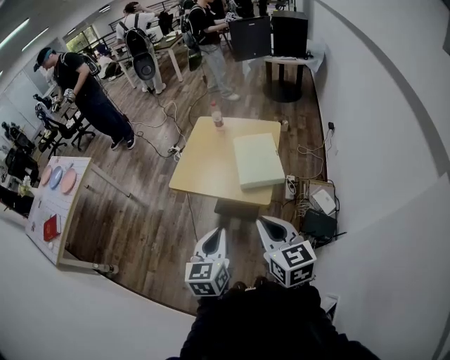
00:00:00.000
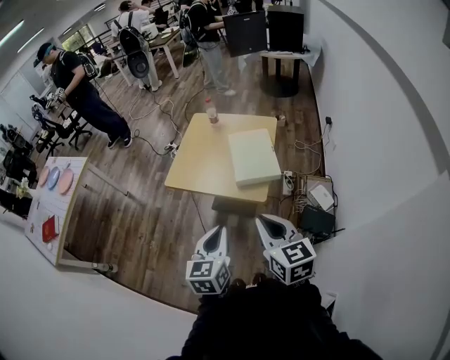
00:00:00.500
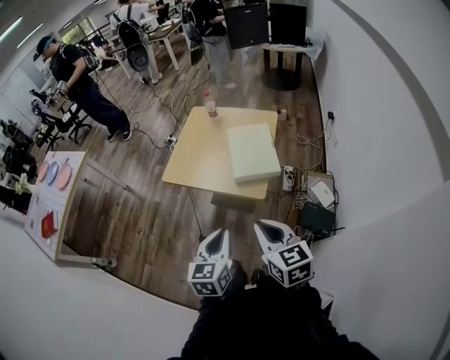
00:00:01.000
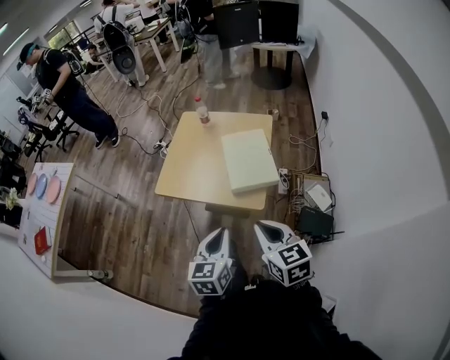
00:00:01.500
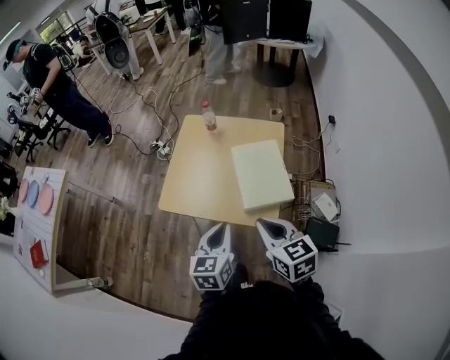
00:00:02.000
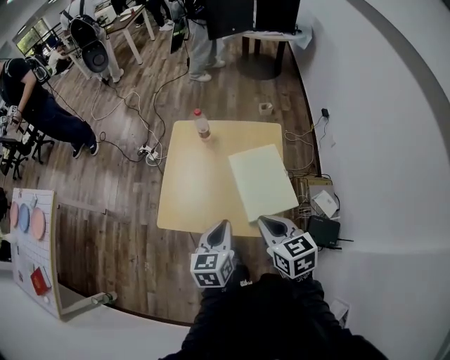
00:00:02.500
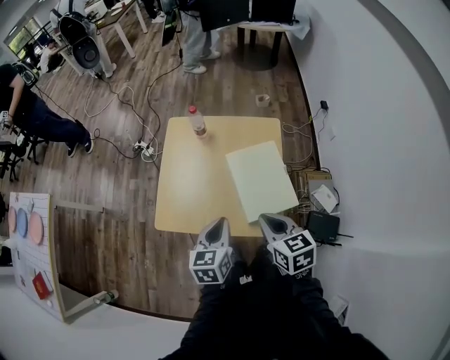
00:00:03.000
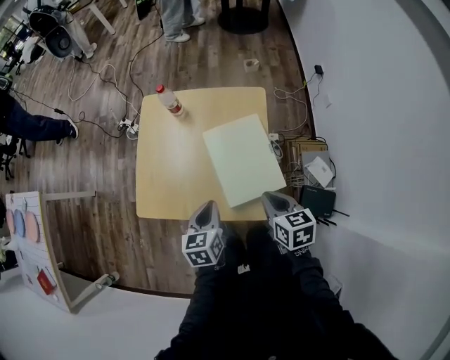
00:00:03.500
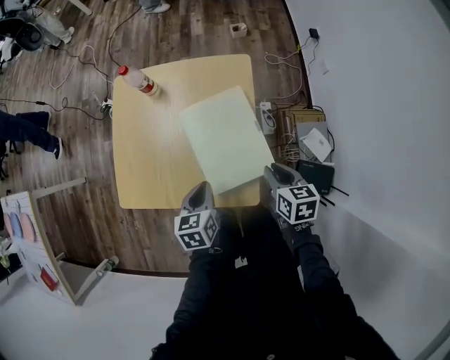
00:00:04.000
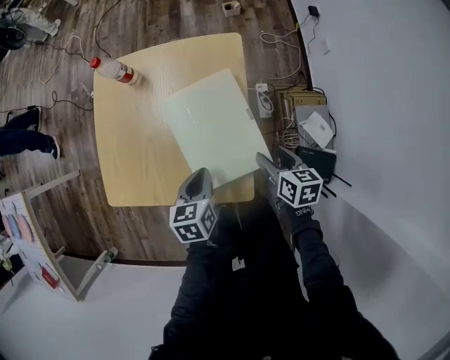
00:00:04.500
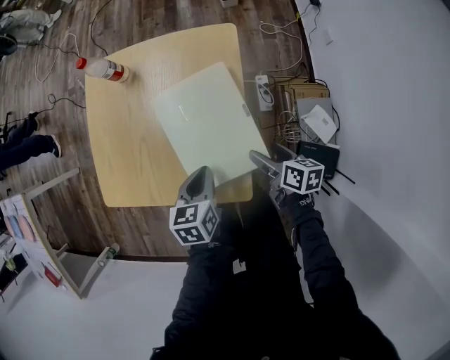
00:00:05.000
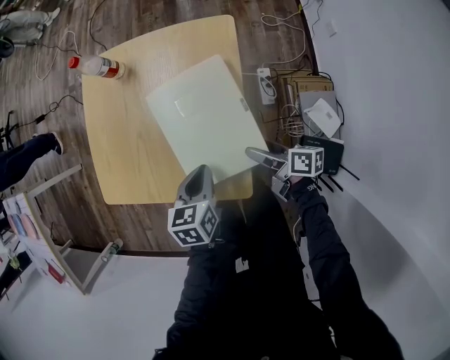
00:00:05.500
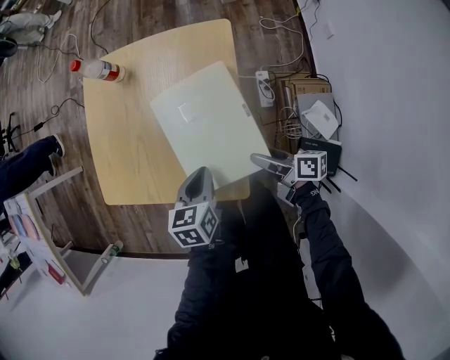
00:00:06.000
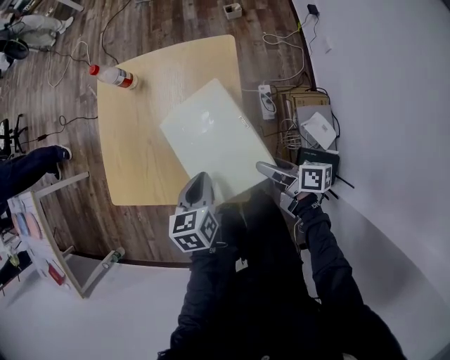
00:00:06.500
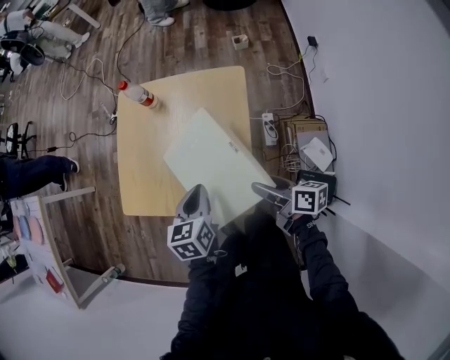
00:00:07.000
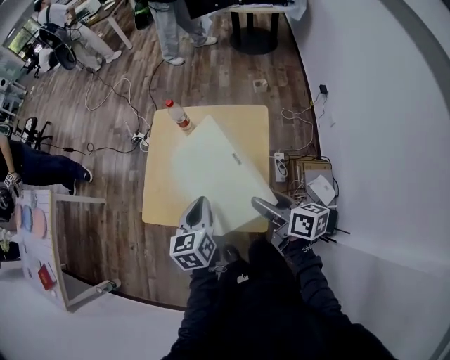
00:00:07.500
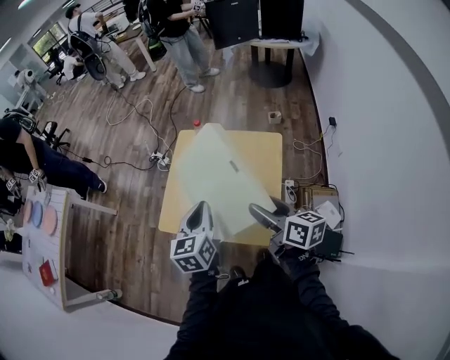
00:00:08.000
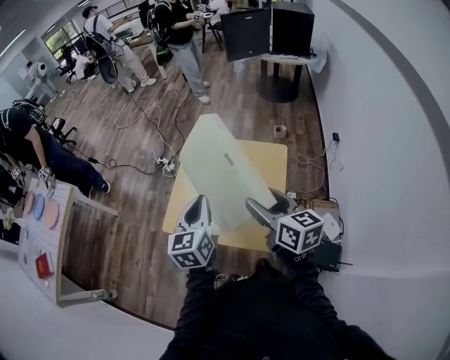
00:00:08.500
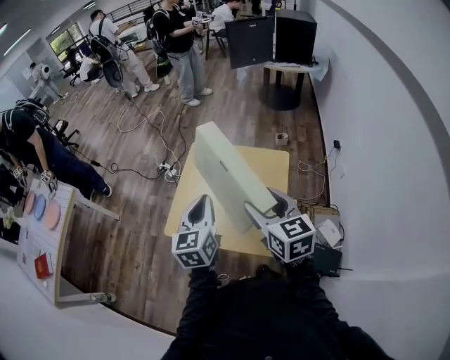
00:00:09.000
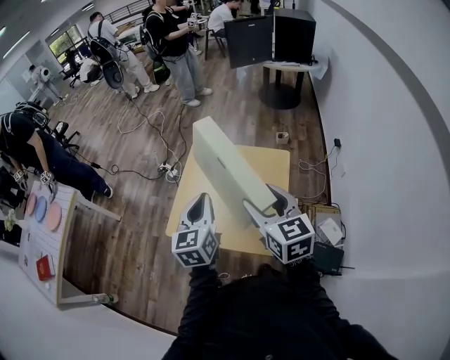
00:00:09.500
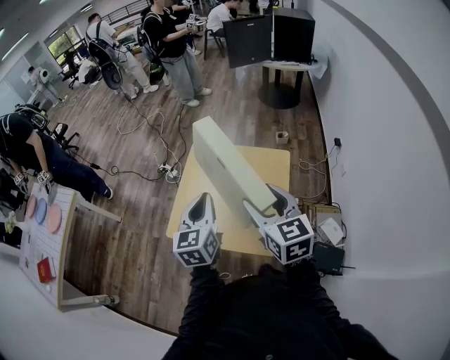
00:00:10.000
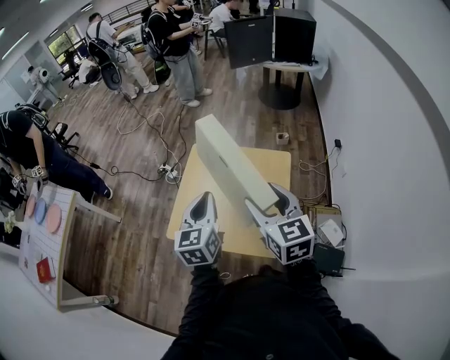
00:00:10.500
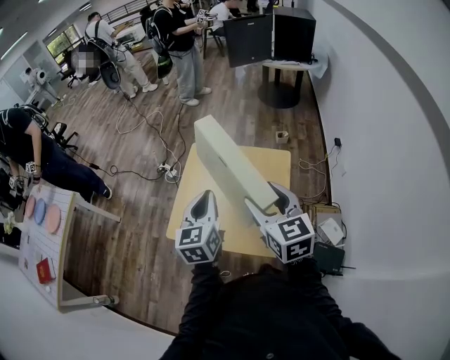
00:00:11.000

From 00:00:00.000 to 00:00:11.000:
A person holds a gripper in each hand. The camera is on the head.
From 00:00:00.000 to 00:00:02.000: The grippers both shift forward by about 20 cm.
From 00:00:02.000 to 00:00:03.500: The right gripper moves downward, forward and to the right, roughly 20 cm, and swivels roughly 20 degrees; the left gripper moves forward and downward, approximately 20 cm.
From 00:00:03.500 to 00:00:05.500: The two grippers go about 20 cm downward and to the right. The right gripper twists some 40 degrees clockwise, seen from behind, and opens up.
From 00:00:05.500 to 00:00:07.500: The left gripper goes approximately 25 cm upward and to the left, and rotates some 20 degrees. The right gripper moves upward, some 30 cm, and changes its angle by approximately 20 degrees.
From 00:00:07.500 to 00:00:09.000: The two grippers go some 20 cm upward and to the left. The right gripper rotates around the line of its fingers by about 40 degrees, counterclockwise from behind.
From 00:00:09.000 to 00:00:11.000: There are only small adjustments of the grippers.

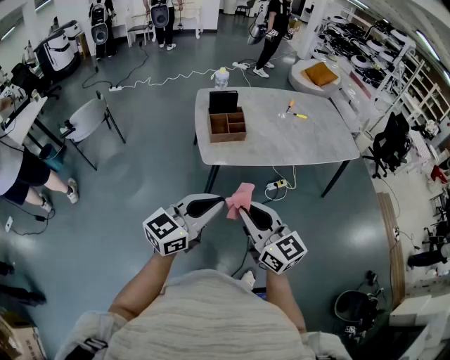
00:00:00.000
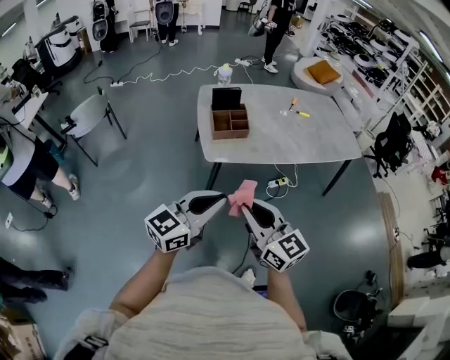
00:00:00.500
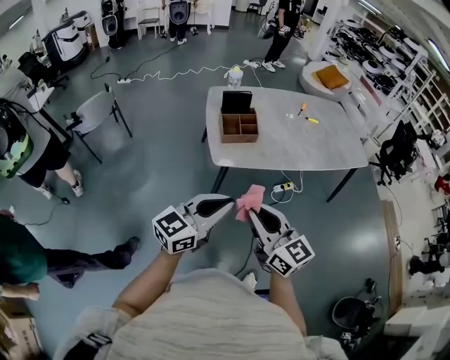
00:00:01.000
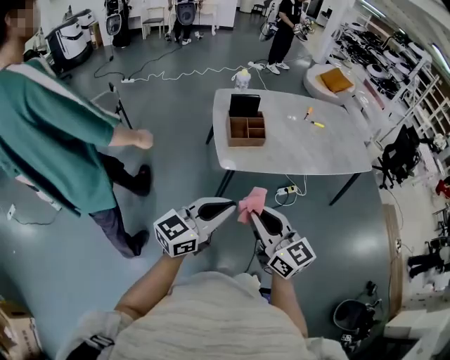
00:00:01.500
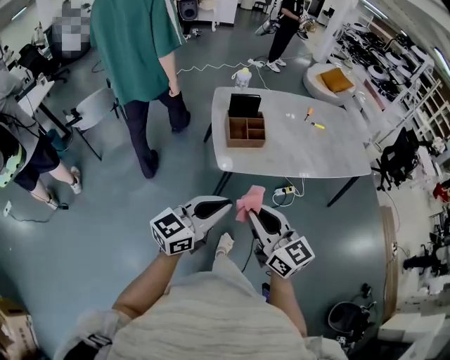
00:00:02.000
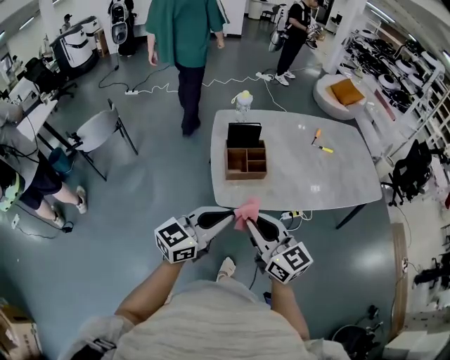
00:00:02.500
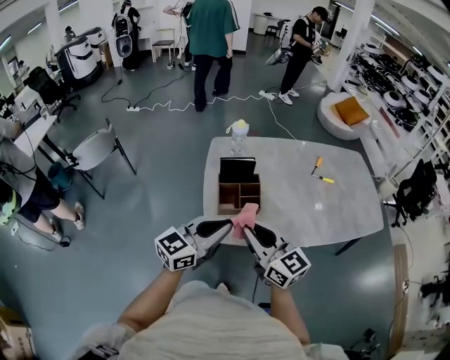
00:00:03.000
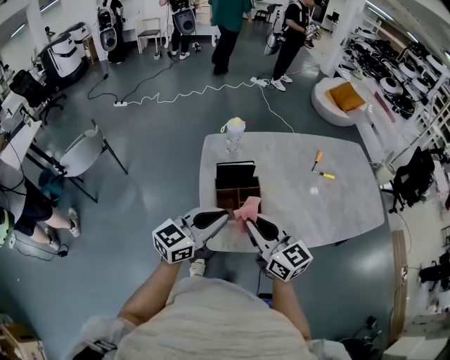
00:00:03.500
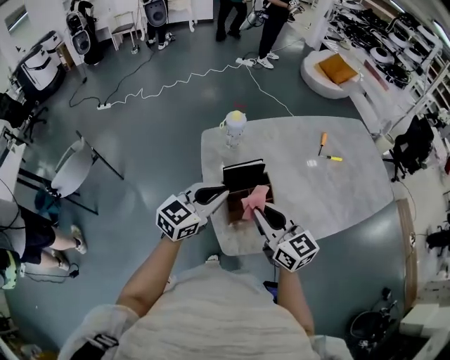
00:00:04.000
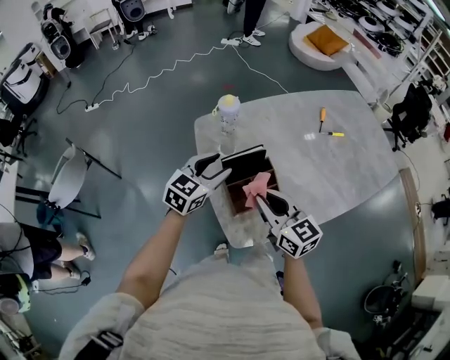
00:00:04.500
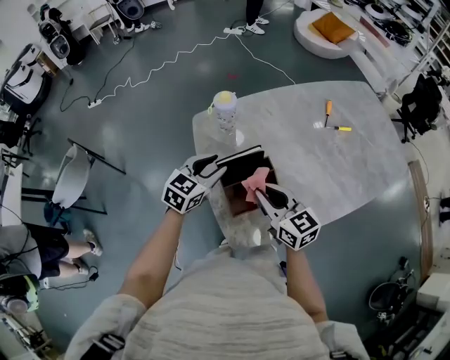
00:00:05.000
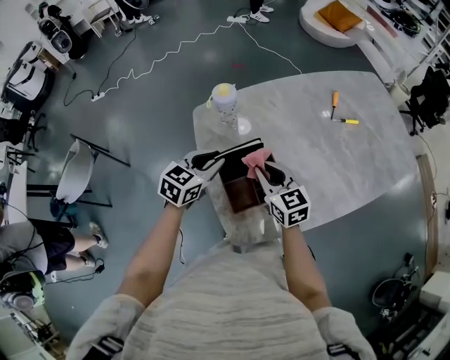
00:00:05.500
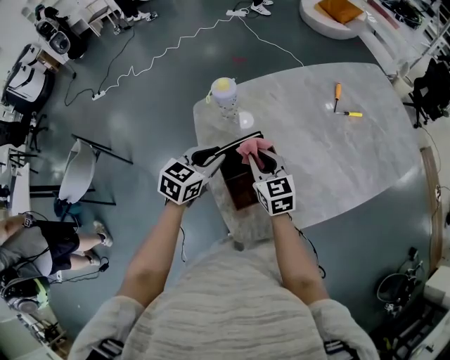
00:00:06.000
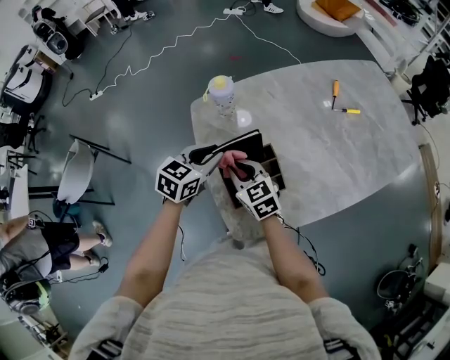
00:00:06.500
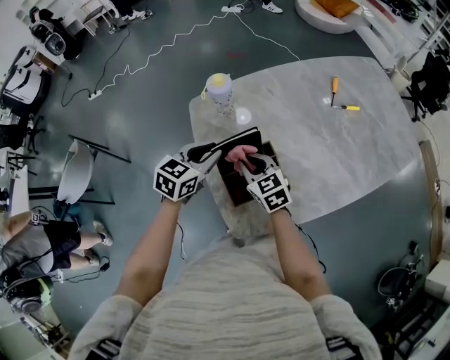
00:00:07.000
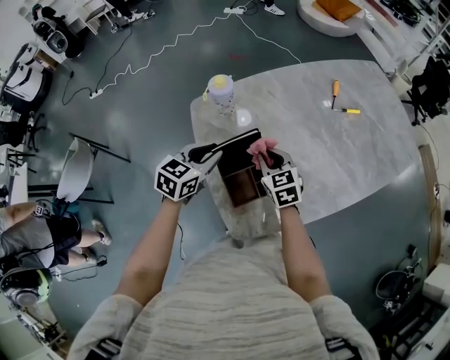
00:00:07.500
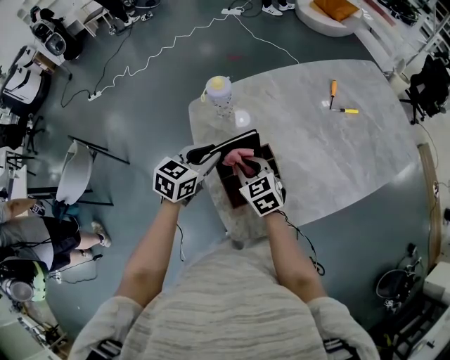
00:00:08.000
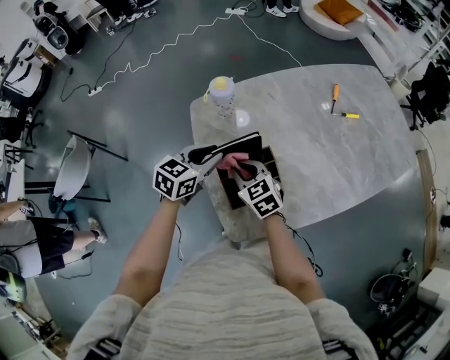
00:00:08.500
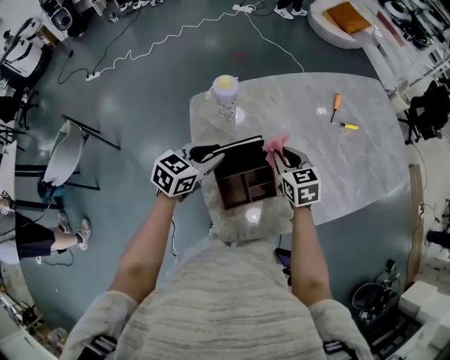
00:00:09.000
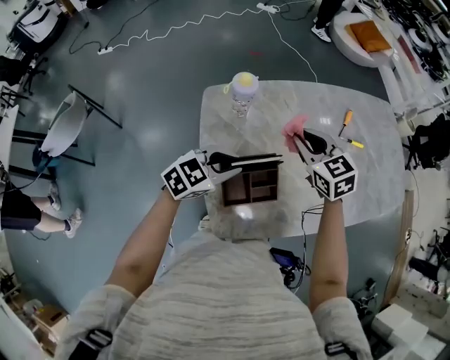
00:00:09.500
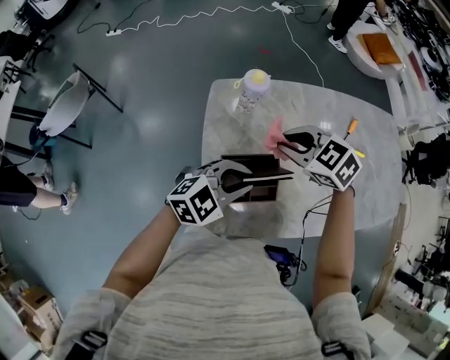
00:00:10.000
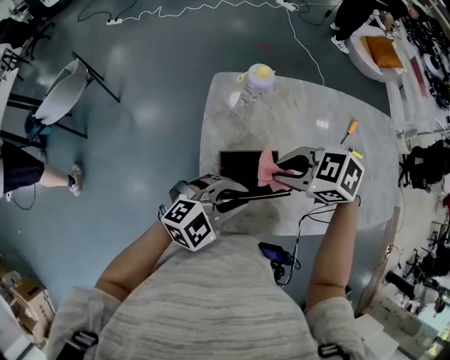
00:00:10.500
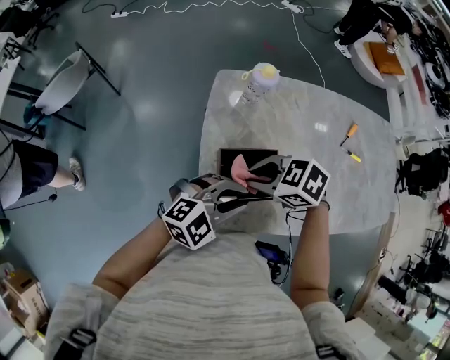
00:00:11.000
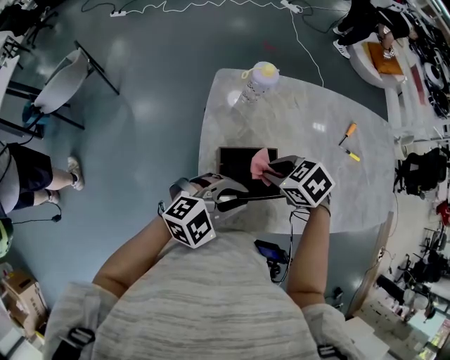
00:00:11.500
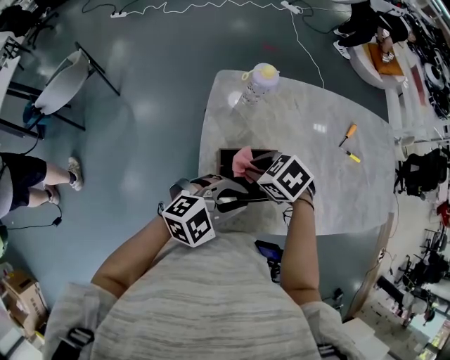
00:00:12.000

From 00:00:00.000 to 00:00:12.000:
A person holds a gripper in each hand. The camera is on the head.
From 00:00:00.000 to 00:00:02.000: The right gripper moves forward and to the left, some 5 cm. The left gripper heads to the left and forward, covering about 10 cm.
From 00:00:02.000 to 00:00:04.000: The pair of grippers is taken forward, roughly 50 cm.
From 00:00:04.000 to 00:00:06.000: The two grippers go some 20 cm forward and downward. The right gripper changes its angle by some 20 degrees. Meanwhile the left gripper swivels about 20 degrees, and opens, then closes again.
From 00:00:06.000 to 00:00:08.000: The right gripper swings left and right, roughly 10 cm each way, with 2 reversals.
From 00:00:08.000 to 00:00:10.000: The left gripper changes place by some 15 cm, and rotates about 30 degrees, while the right gripper shifts some 15 cm upward, and swivels approximately 40 degrees.
From 00:00:10.000 to 00:00:12.000: The left gripper moves some 5 cm. Meanwhile the right gripper shifts by roughly 15 cm, and swivels about 20 degrees.

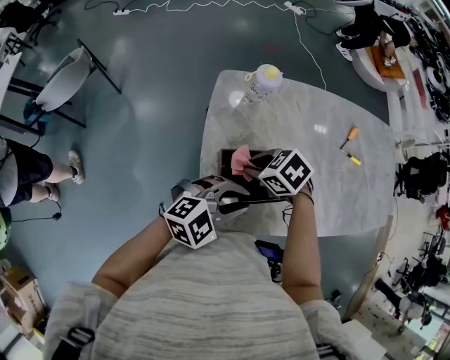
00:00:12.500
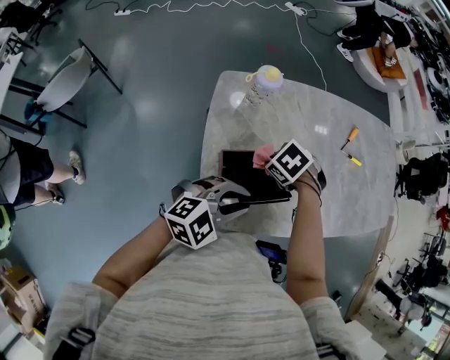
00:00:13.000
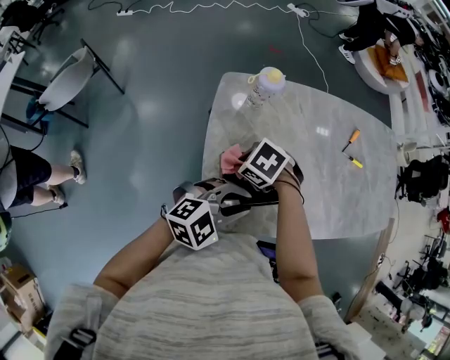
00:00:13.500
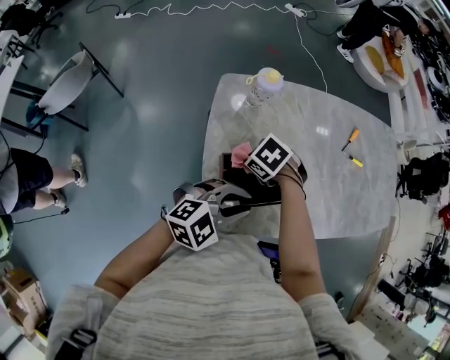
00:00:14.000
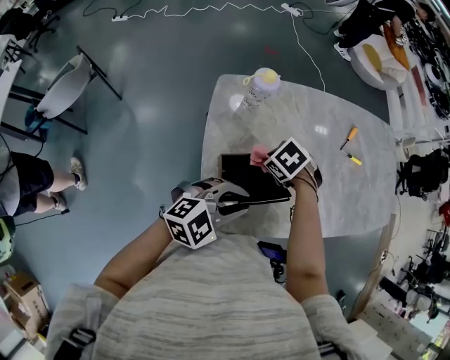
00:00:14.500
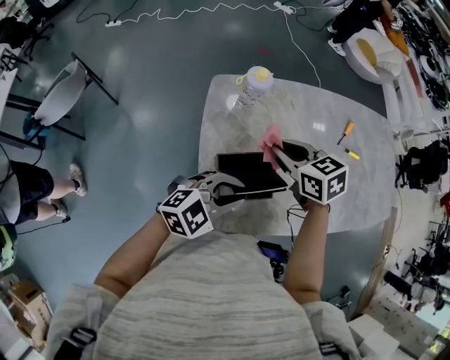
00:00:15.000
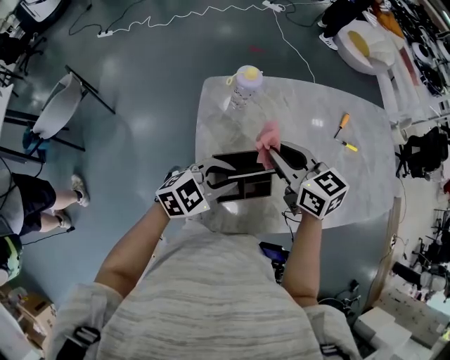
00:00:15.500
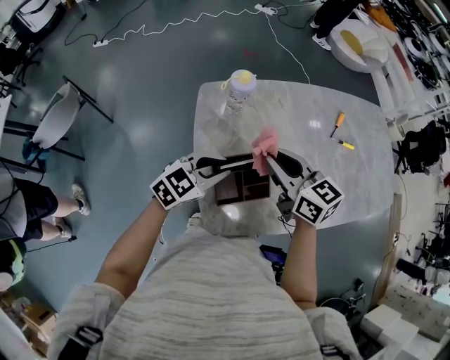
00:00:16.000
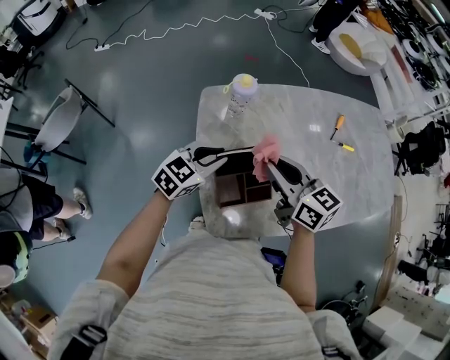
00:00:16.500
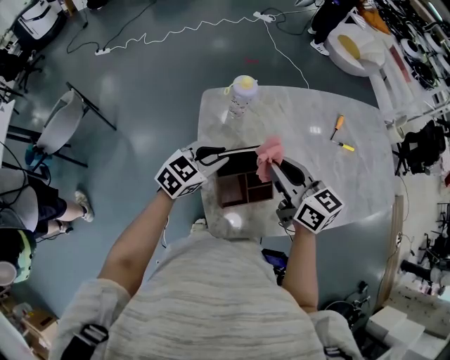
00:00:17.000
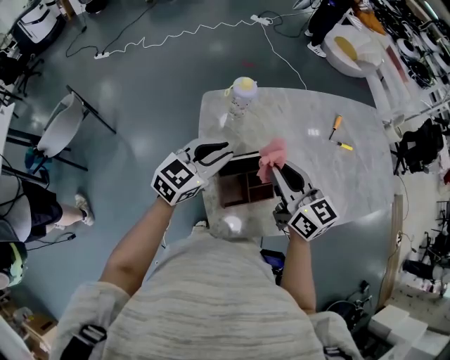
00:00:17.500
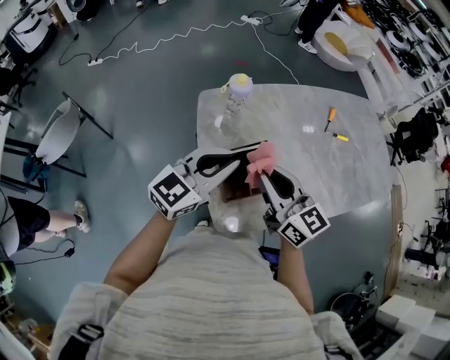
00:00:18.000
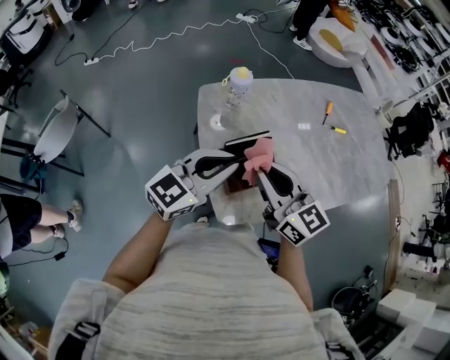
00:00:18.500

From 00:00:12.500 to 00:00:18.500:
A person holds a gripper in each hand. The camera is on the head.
From 00:00:12.500 to 00:00:14.500: The right gripper moves roughly 10 cm.
From 00:00:14.500 to 00:00:16.500: The left gripper moves roughly 15 cm, and rotates some 20 degrees; the right gripper is displaced upward by approximately 15 cm, and points its fingers approximately 70 degrees further upward.
From 00:00:16.500 to 00:00:18.500: The left gripper moves upward and backward, about 15 cm, and rotates approximately 20 degrees, while the right gripper travels backward by some 10 cm.
